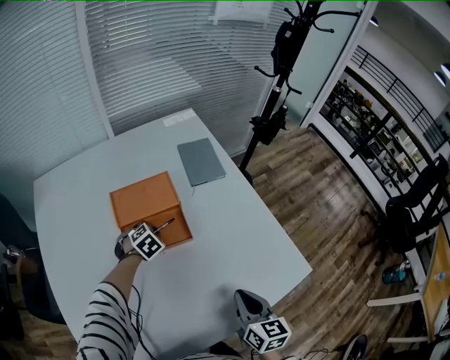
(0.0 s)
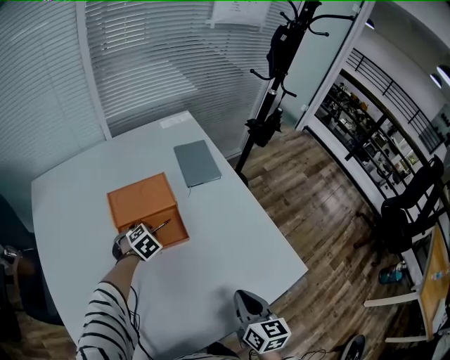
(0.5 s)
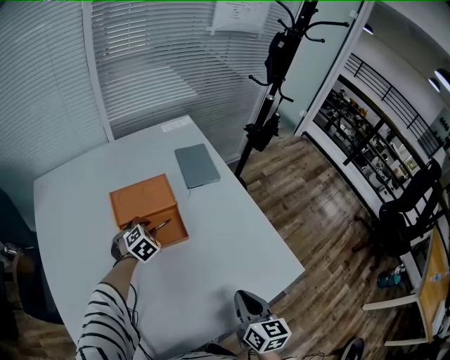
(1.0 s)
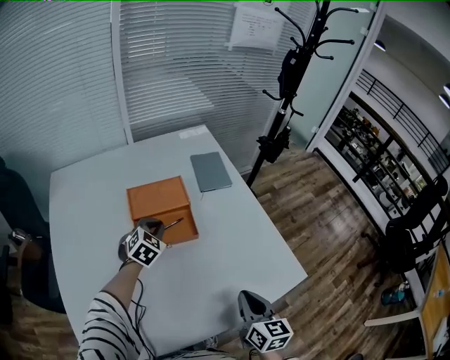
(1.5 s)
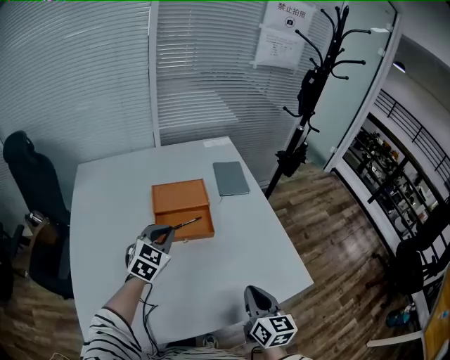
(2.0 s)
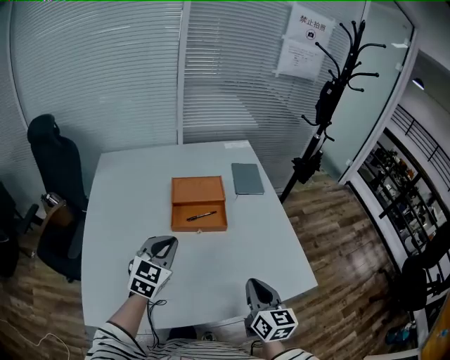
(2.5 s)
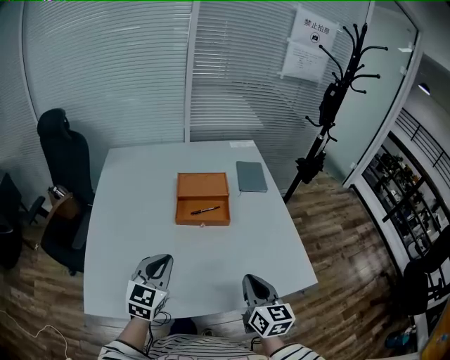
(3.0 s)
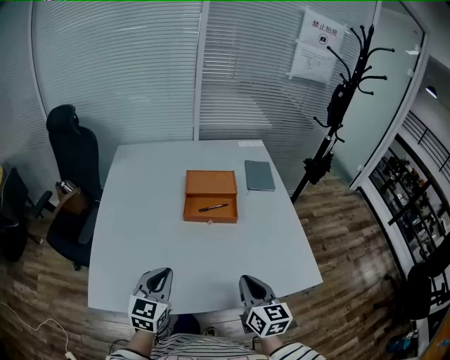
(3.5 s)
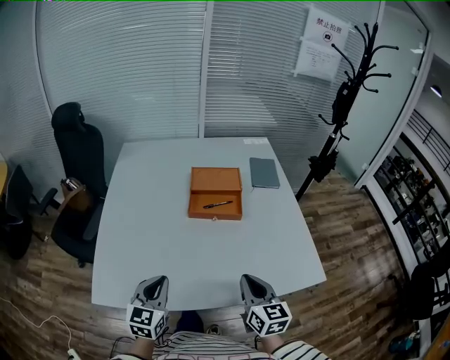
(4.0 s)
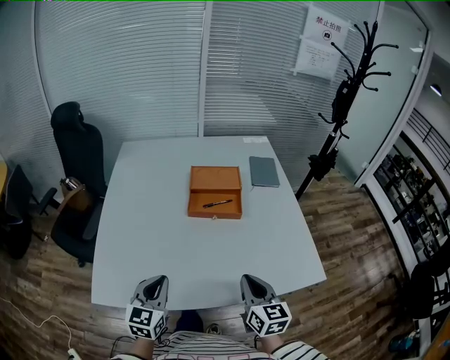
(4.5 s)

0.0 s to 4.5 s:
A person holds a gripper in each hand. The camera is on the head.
0.0 to 2.0 s: The right gripper moves backward and upward, roughly 5 cm. The left gripper heads upward and backward, covering approximately 25 cm, and tips its fingers upward by approximately 40 degrees.
2.0 to 4.5 s: The right gripper shifts approximately 10 cm to the left and backward. The left gripper goes approximately 30 cm backward, and turns by approximately 30 degrees.

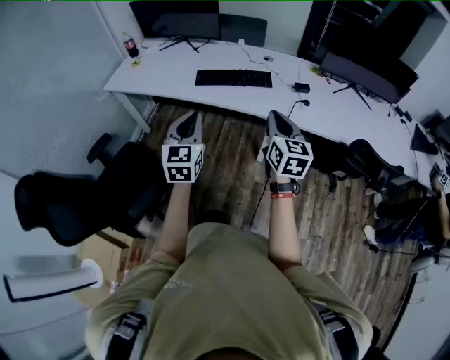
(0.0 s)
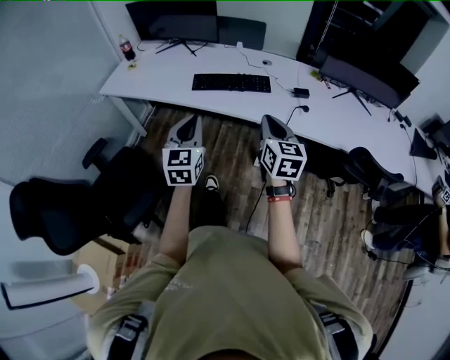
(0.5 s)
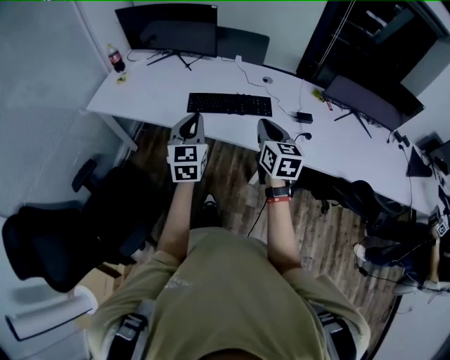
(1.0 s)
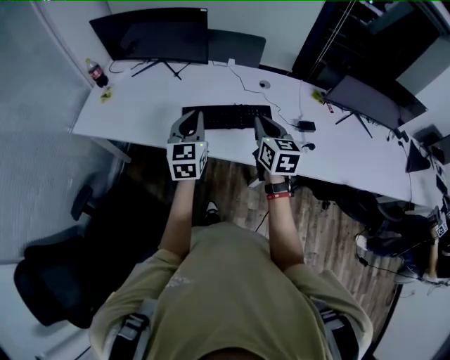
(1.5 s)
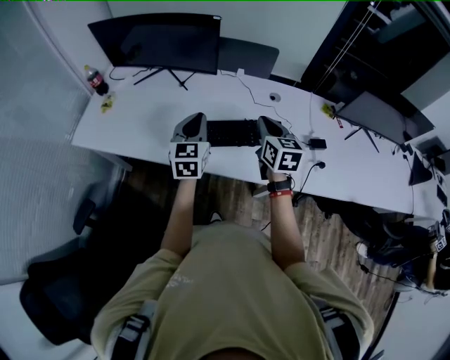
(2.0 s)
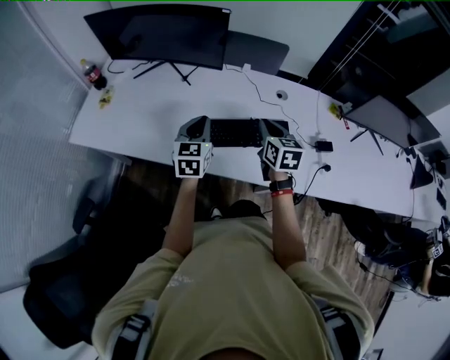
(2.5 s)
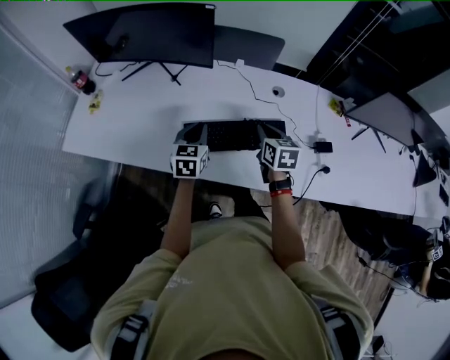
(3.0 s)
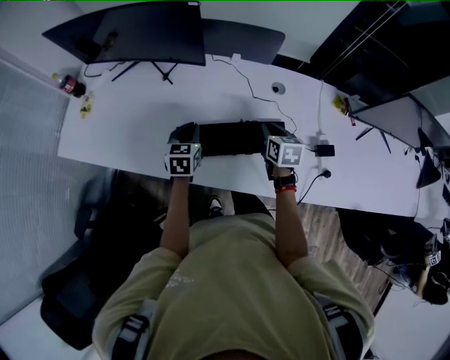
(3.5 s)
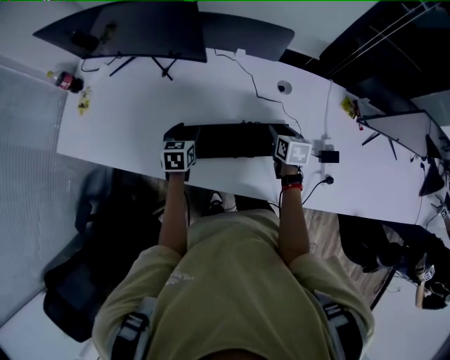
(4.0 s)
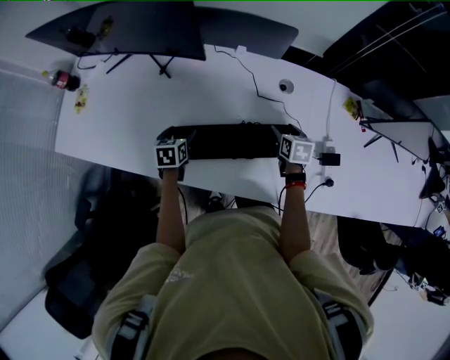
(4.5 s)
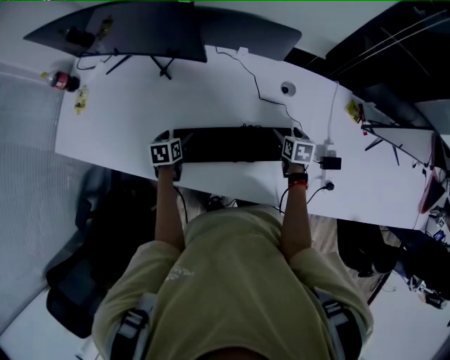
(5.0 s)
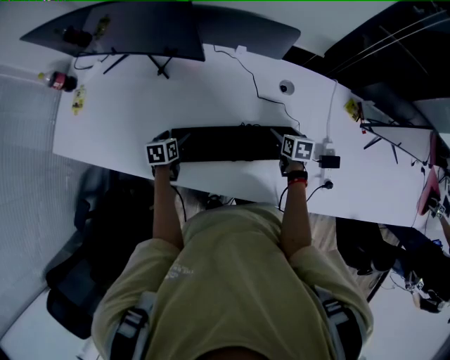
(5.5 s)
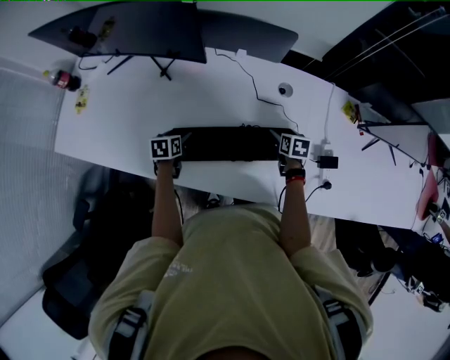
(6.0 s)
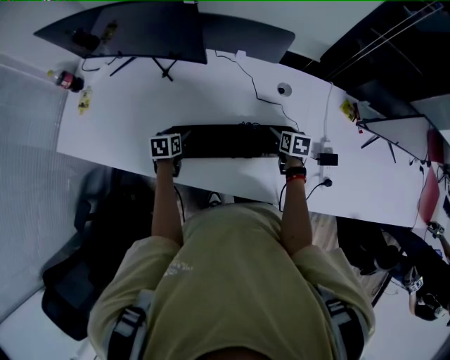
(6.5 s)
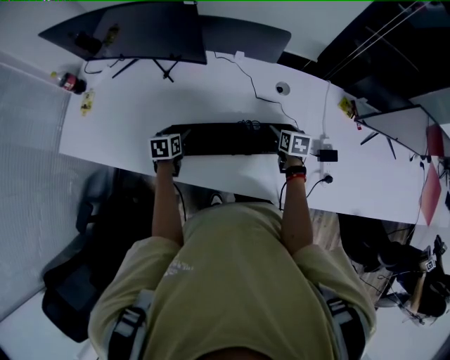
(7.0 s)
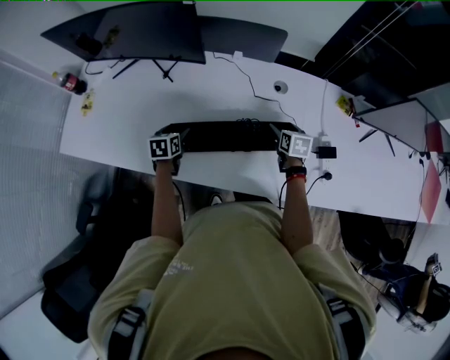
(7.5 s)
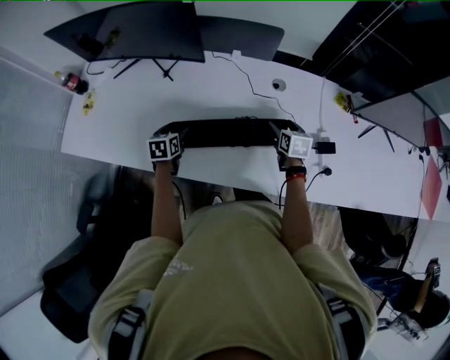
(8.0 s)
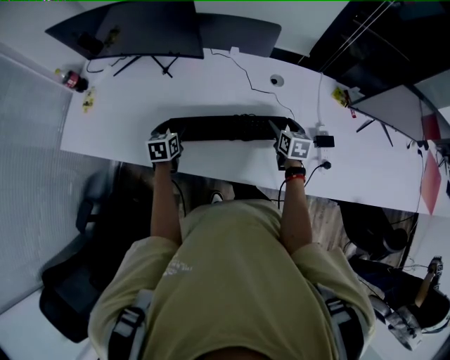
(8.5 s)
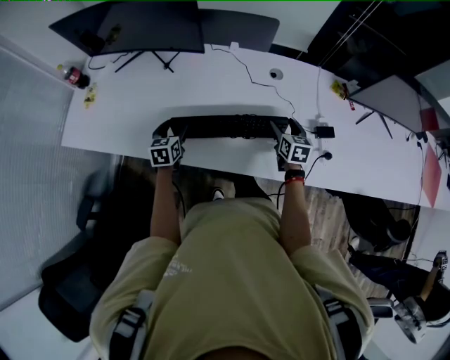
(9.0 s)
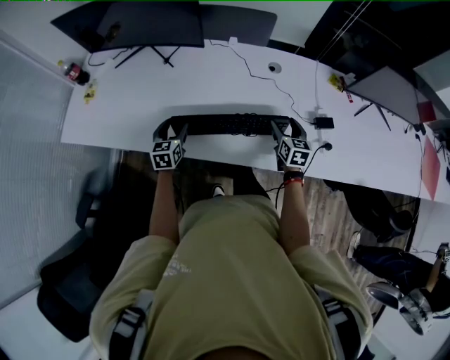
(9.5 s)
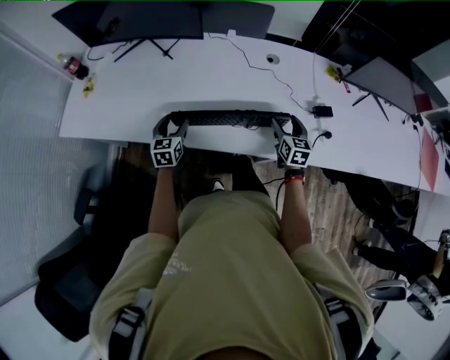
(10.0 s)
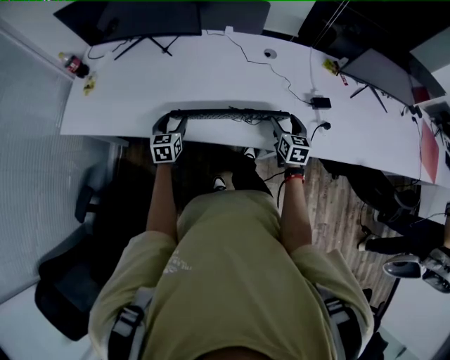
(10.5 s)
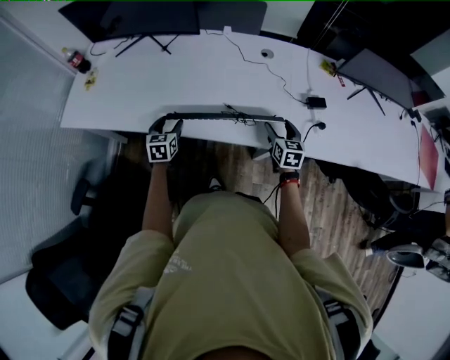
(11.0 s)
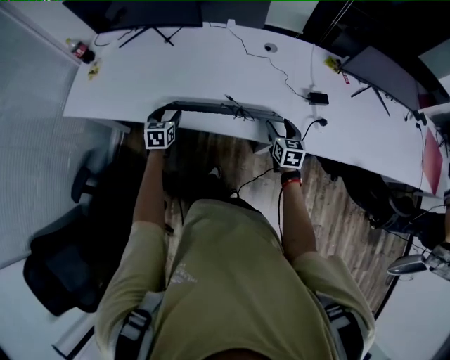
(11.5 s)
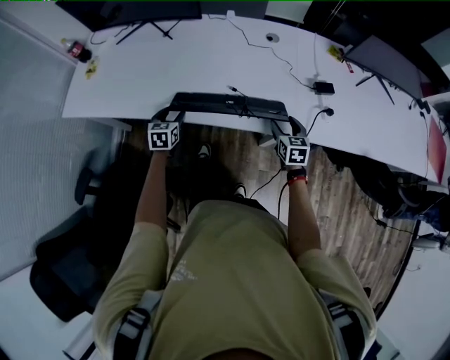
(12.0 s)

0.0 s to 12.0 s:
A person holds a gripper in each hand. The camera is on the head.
0.0 to 2.0 s: The pair of grippers is taken forward, about 50 cm.
2.0 to 4.0 s: The left gripper heads downward and forward, covering some 30 cm, tips its fingers downward by some 30 degrees, and opens up, while the right gripper moves downward, forward and to the right, approximately 30 cm, changes its angle by some 30 degrees, and opens up.
4.0 to 6.0 s: The grippers both shift downward by some 10 cm. The right gripper opens.
6.0 to 8.0 s: The two grippers go about 10 cm upward.
8.0 to 10.0 s: Both grippers travel together backward, approximately 15 cm. The left gripper rotates some 20 degrees.
10.0 to 12.0 s: The left gripper travels backward by about 5 cm. The right gripper goes roughly 10 cm backward.

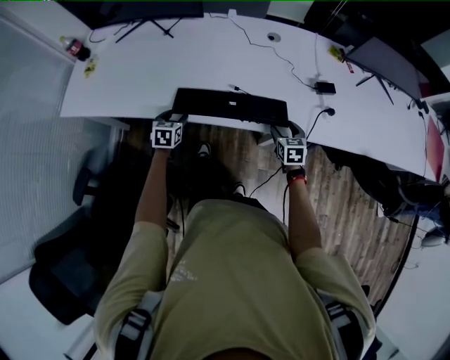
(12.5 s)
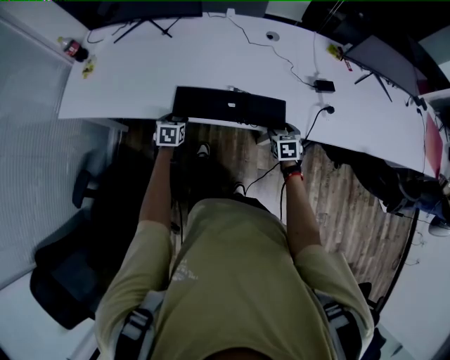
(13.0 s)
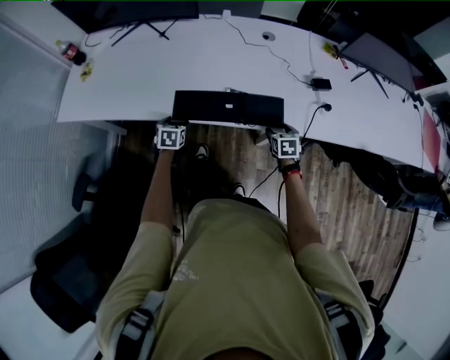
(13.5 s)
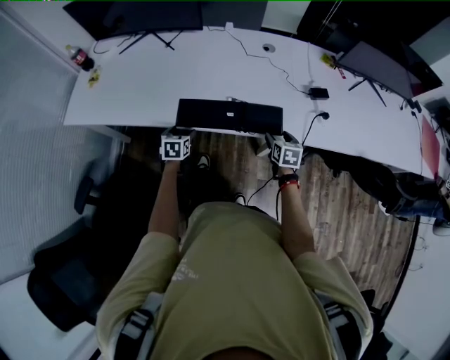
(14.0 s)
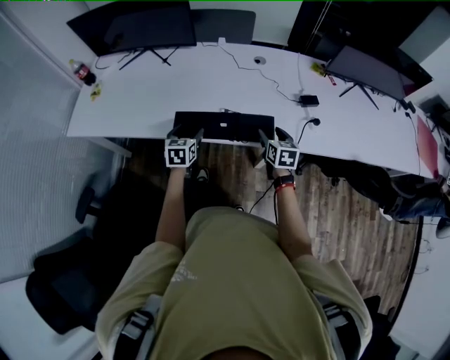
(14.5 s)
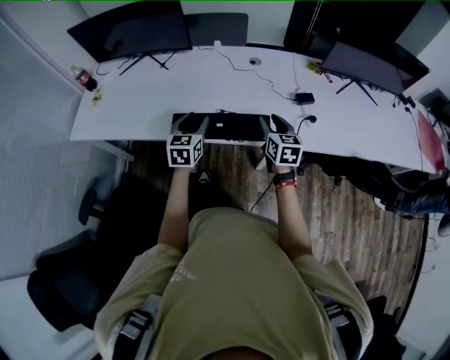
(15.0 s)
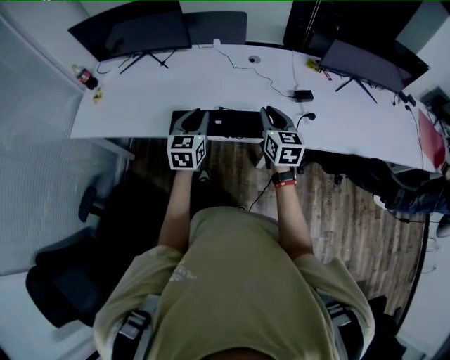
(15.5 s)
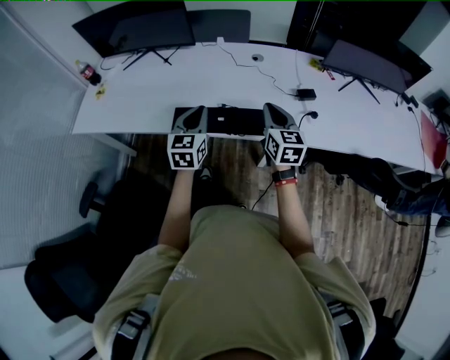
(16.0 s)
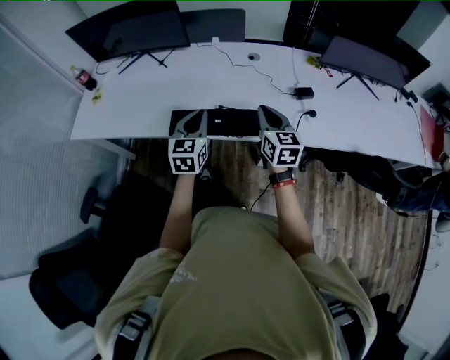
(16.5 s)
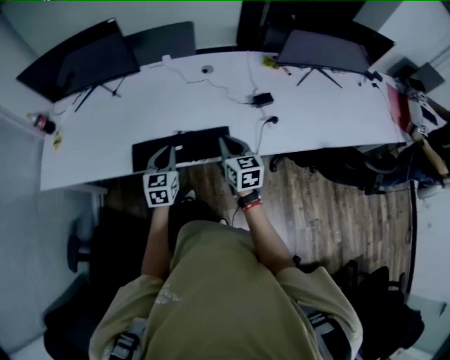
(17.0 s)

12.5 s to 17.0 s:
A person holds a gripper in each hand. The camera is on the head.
12.5 to 14.5 s: The right gripper goes approximately 10 cm upward. Meanwhile the left gripper moves upward and to the right, roughly 15 cm.
14.5 to 17.0 s: The left gripper travels upward by roughly 5 cm, and closes. Meanwhile the right gripper travels to the left and upward by about 10 cm, and closes.

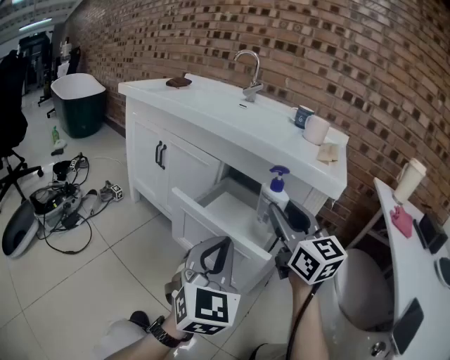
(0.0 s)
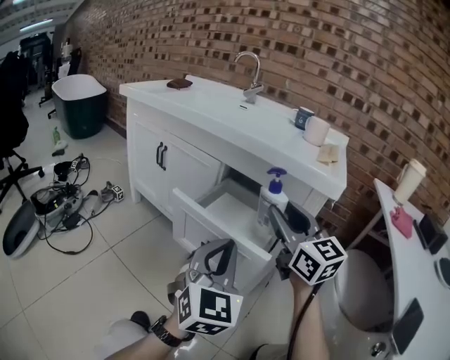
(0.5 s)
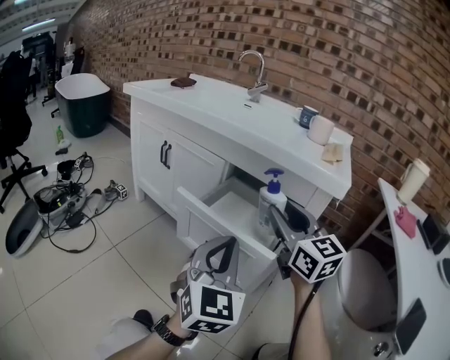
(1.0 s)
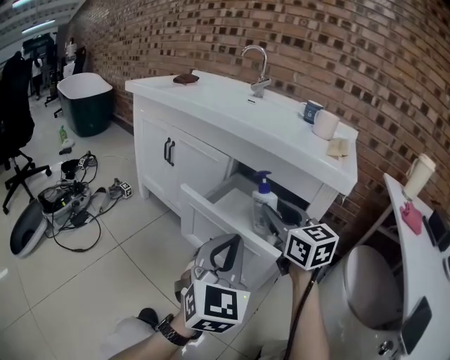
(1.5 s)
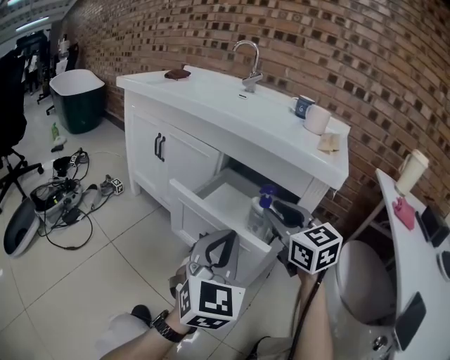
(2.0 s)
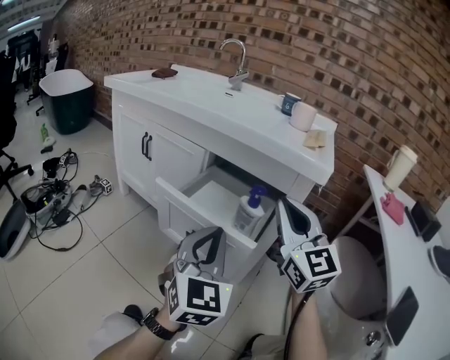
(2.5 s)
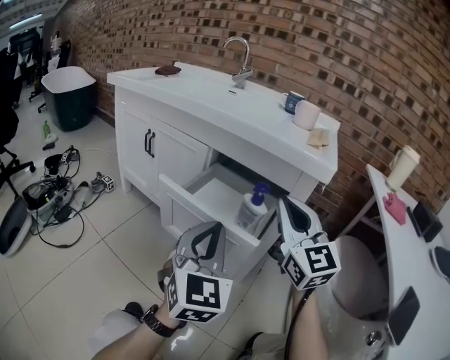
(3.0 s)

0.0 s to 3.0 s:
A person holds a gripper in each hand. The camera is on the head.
0.0 to 1.5 s: The right gripper shifts approximately 5 cm downward.
1.5 to 3.0 s: The right gripper goes some 10 cm backward and upward, changes its angle by some 30 degrees, and closes its fingers.

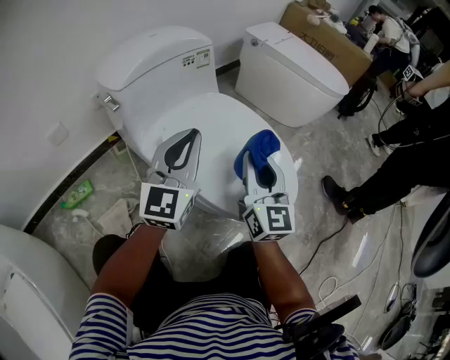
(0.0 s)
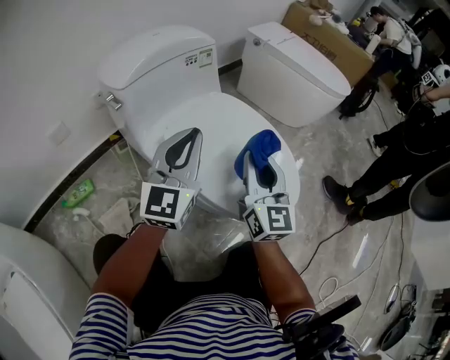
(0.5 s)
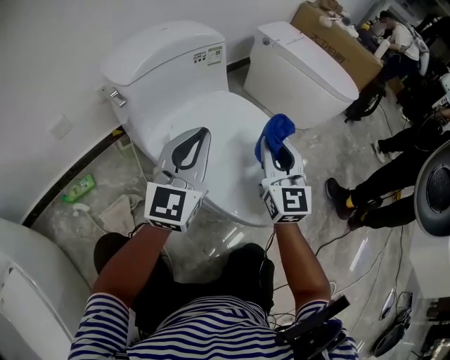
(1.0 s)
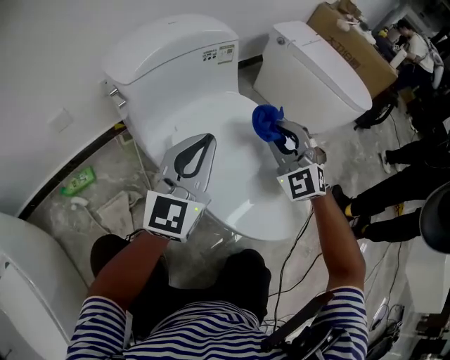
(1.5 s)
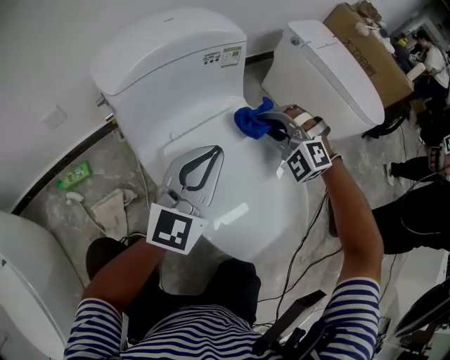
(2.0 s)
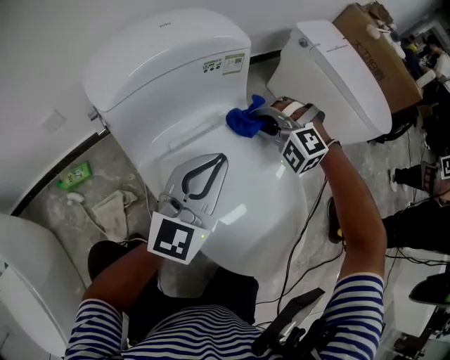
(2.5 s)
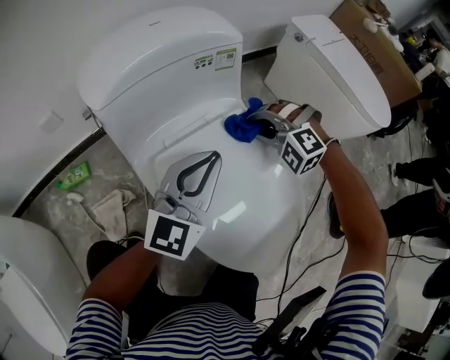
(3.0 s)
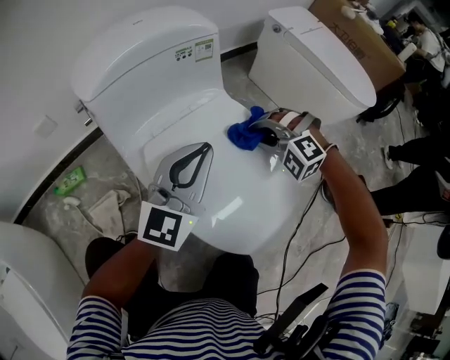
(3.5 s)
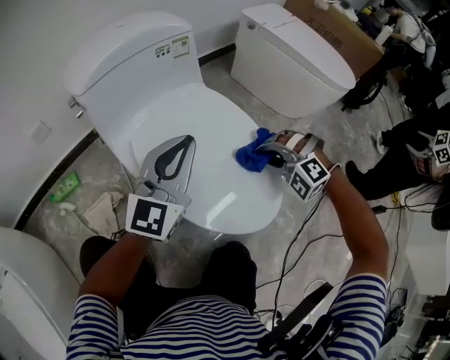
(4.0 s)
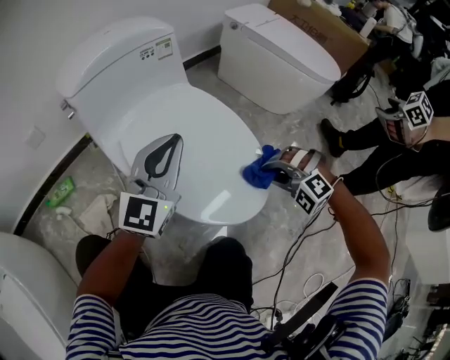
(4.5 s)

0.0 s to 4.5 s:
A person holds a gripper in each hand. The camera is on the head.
0.0 to 2.0 s: The left gripper shifts by roughly 10 cm.
2.0 to 4.5 s: The left gripper changes place by about 10 cm.
